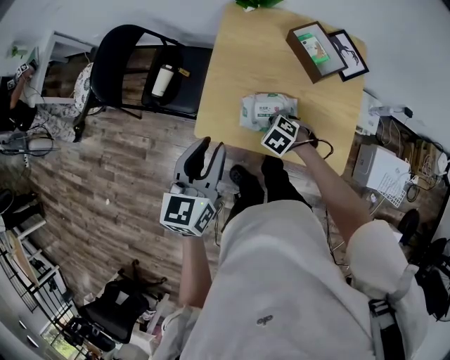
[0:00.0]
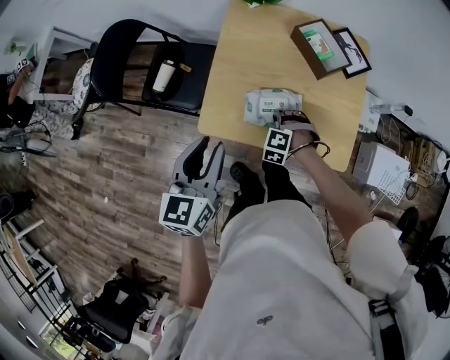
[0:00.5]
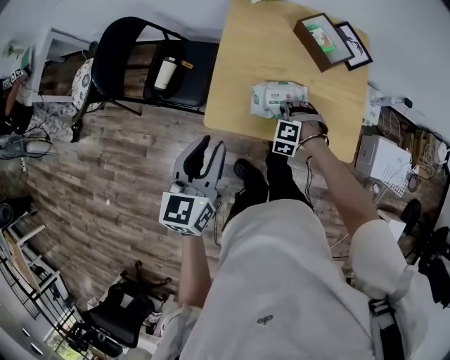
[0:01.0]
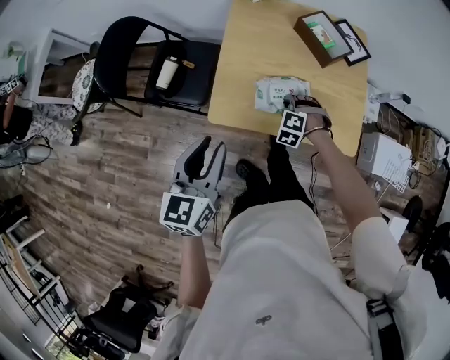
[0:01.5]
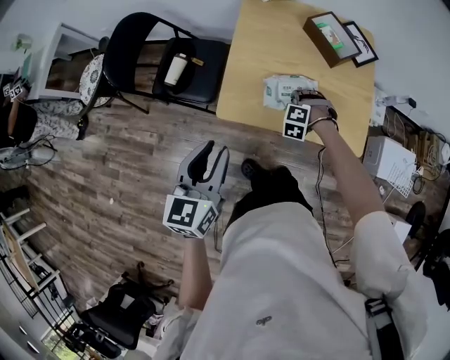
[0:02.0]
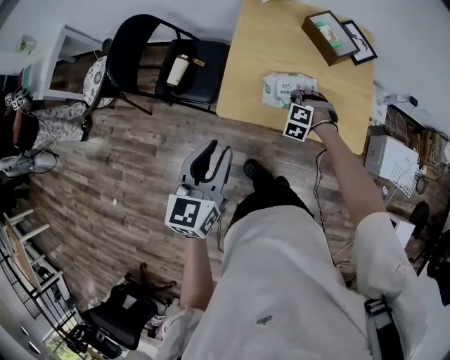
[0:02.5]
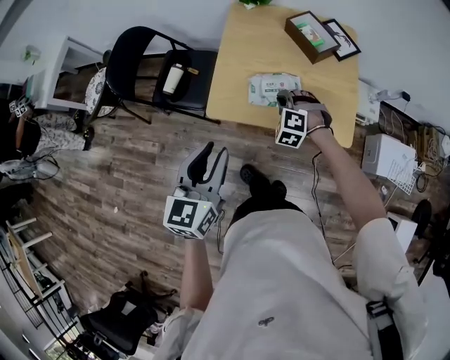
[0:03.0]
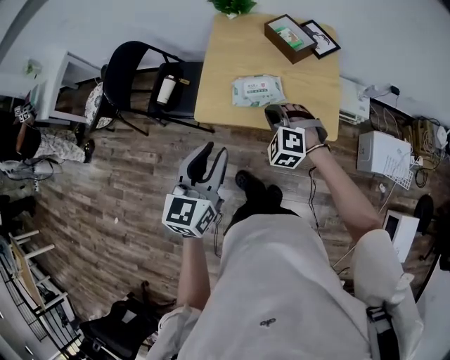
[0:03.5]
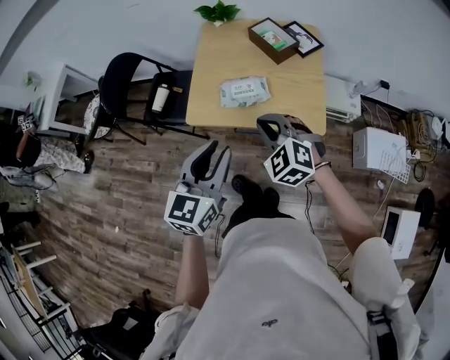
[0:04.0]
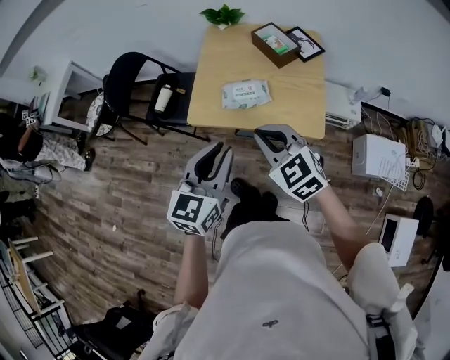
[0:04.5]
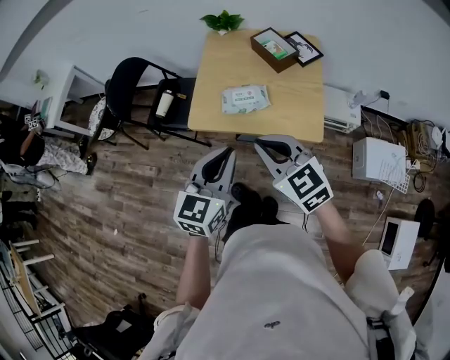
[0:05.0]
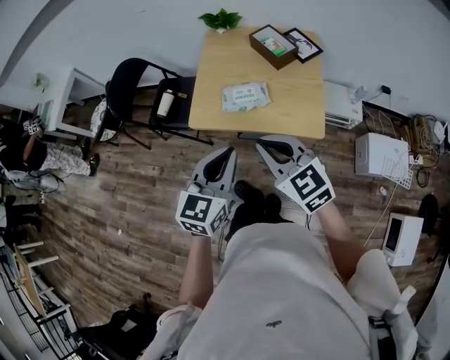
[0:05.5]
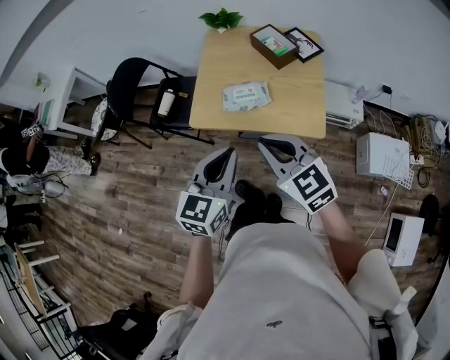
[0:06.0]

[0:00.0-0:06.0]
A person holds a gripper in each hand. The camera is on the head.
0:00.0 to 0:02.0: The right gripper turns by approximately 40 degrees. The left gripper shifts by approximately 15 cm.
0:02.0 to 0:04.0: The left gripper goes some 20 cm to the right, backward and upward; the right gripper travels upward and backward by approximately 30 cm, and tips its fingers upward by some 30 degrees.
0:04.0 to 0:06.0: The left gripper closes, while the right gripper moves upward and backward, approximately 10 cm, and rotates roughly 30 degrees.

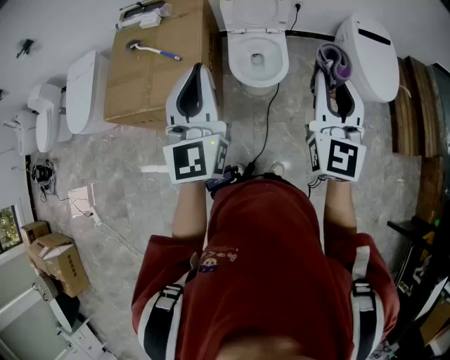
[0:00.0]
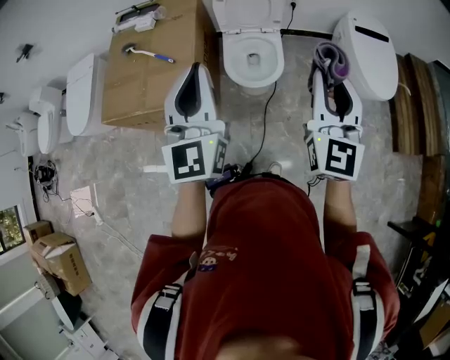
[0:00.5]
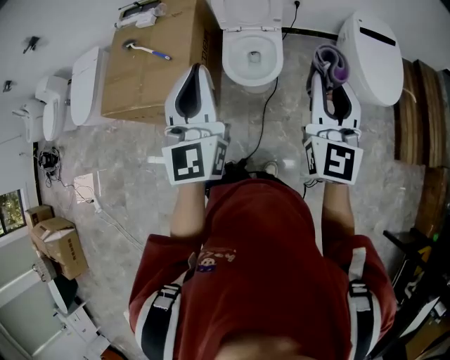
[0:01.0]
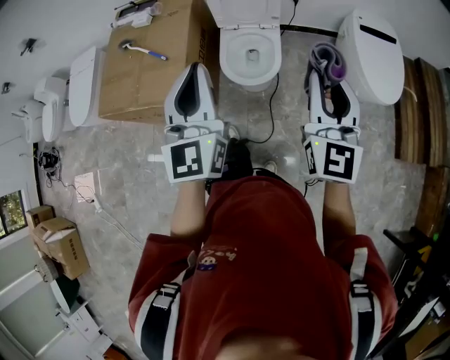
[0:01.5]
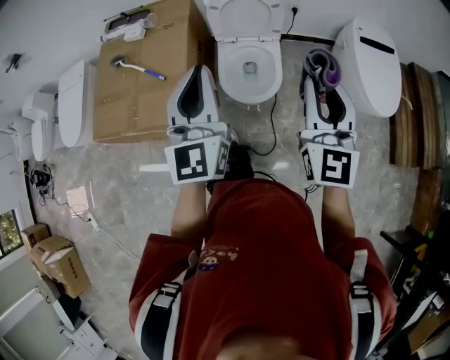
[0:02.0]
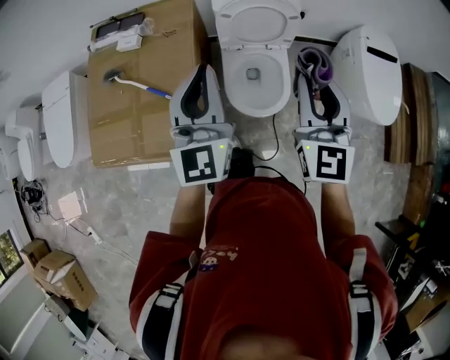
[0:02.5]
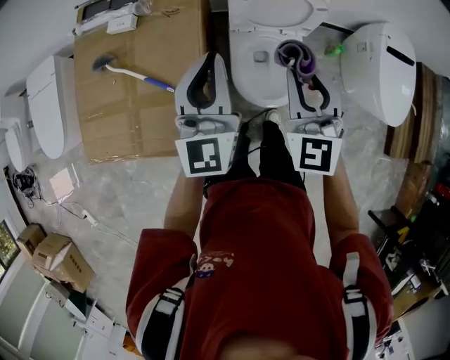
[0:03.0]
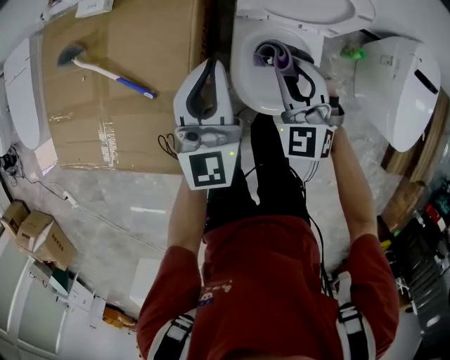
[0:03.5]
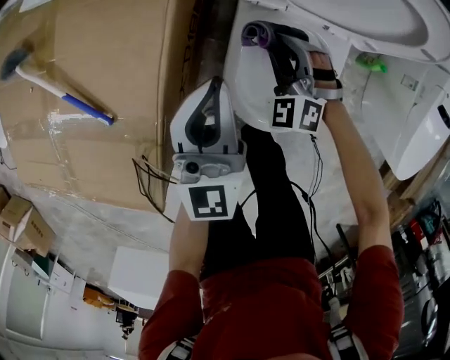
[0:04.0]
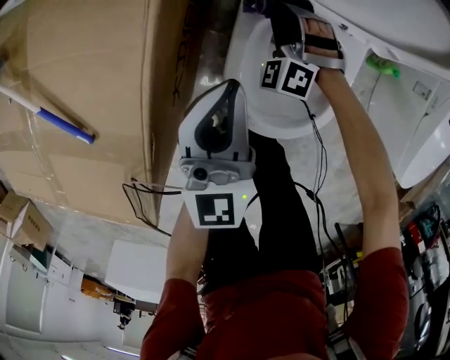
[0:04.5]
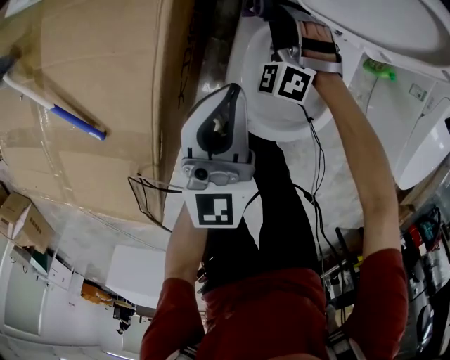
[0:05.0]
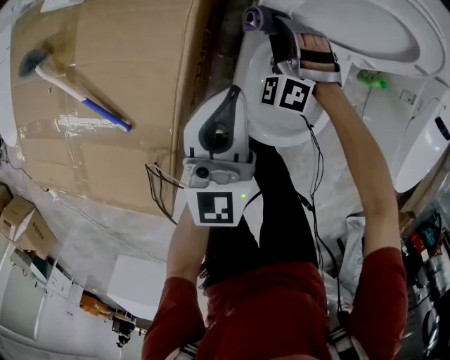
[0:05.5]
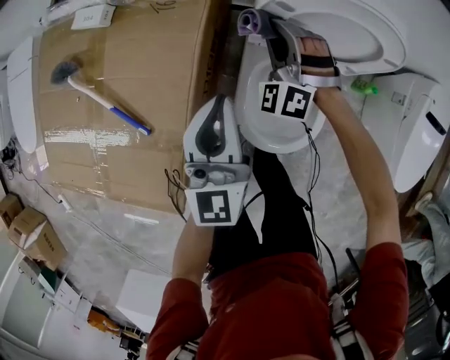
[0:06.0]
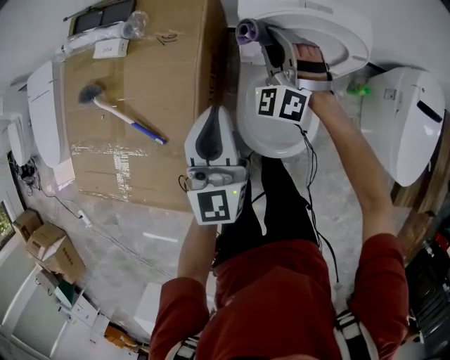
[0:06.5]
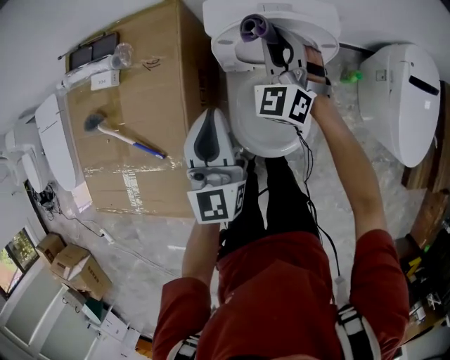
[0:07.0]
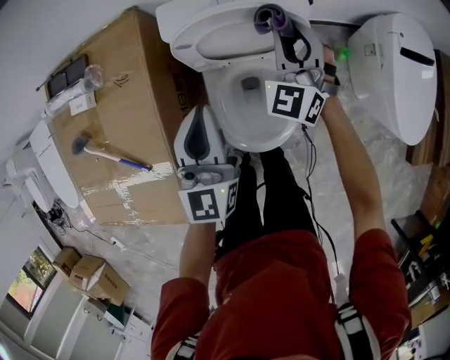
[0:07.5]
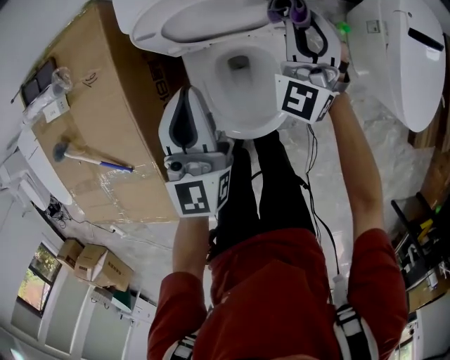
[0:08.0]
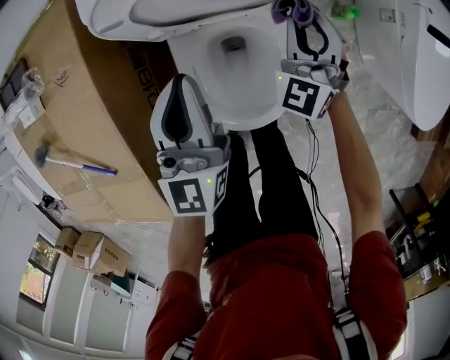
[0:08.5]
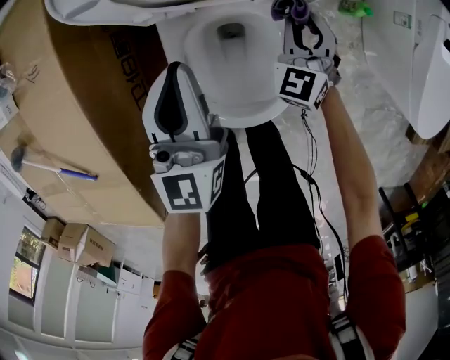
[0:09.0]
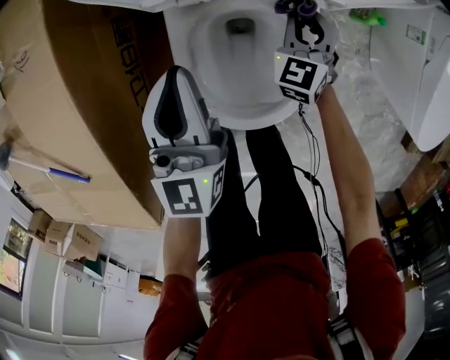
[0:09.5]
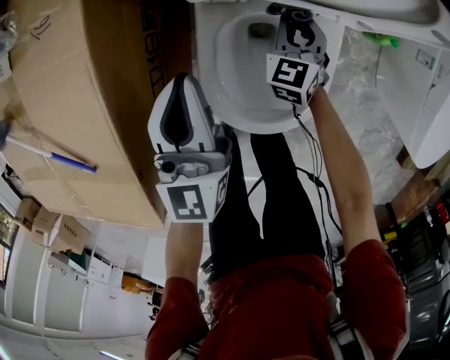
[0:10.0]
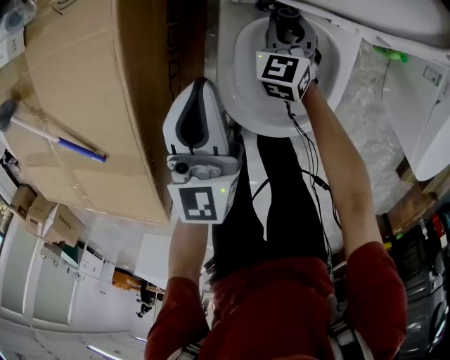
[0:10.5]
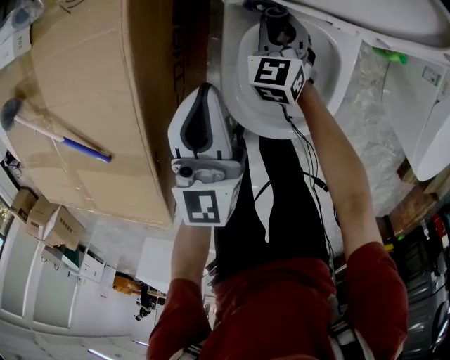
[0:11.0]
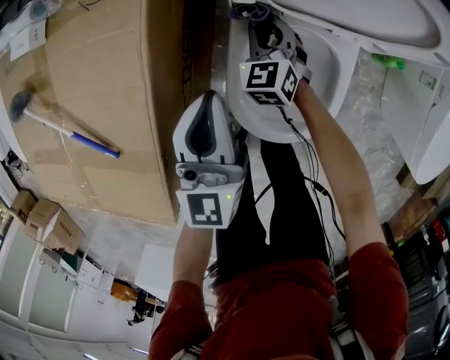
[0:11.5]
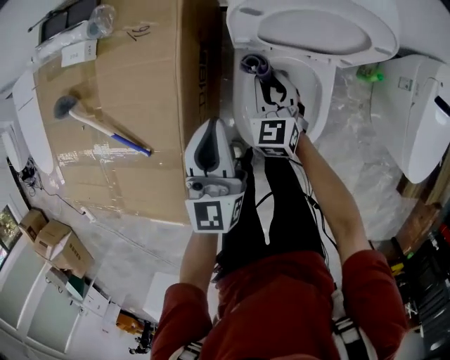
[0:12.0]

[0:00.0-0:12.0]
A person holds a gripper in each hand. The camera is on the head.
0:00.0 to 0:02.0: The right gripper travels forward by roughly 15 cm. Meanwhile the left gripper heads forward and to the right, covering some 15 cm.
0:02.0 to 0:04.0: The grippers both shift downward and forward by some 60 cm. The right gripper tips its fingers downward by some 40 degrees.
0:04.0 to 0:06.0: The right gripper moves upward and forward, about 15 cm, and changes its angle by some 20 degrees; the left gripper is displaced upward by some 10 cm.
0:06.0 to 0:08.0: The left gripper is displaced to the right and forward by roughly 20 cm. Meanwhile the right gripper is displaced to the right by approximately 30 cm, and turns by some 50 degrees.
0:08.0 to 0:10.0: The right gripper travels downward by approximately 30 cm, and swivels approximately 30 degrees. The left gripper heads downward and to the left, covering roughly 20 cm.
0:10.0 to 0:12.0: The right gripper moves upward and to the left, about 20 cm, while the left gripper goes about 10 cm upward.

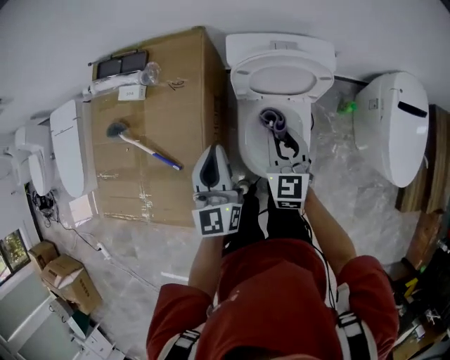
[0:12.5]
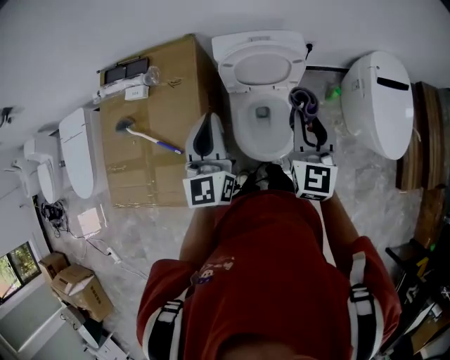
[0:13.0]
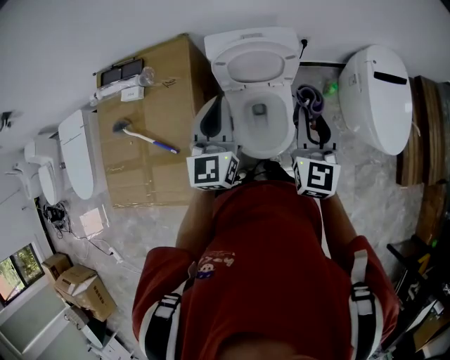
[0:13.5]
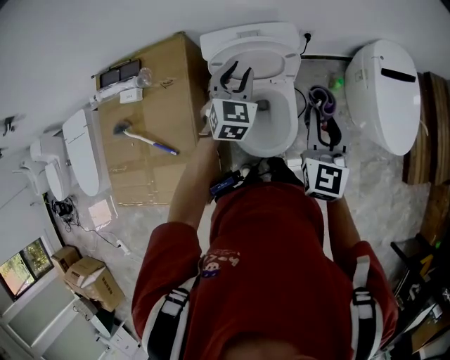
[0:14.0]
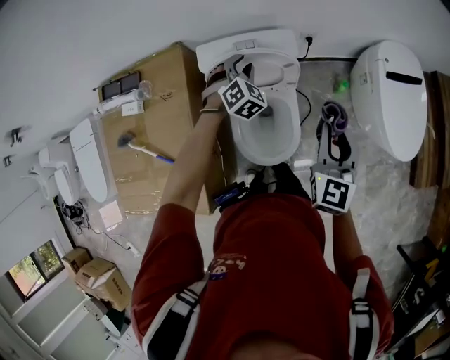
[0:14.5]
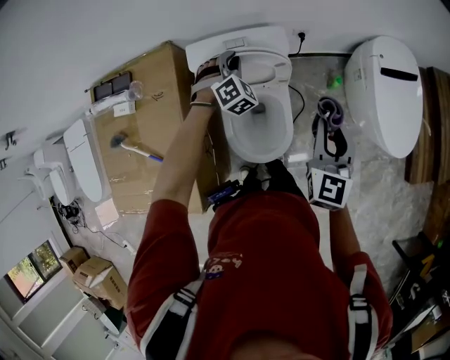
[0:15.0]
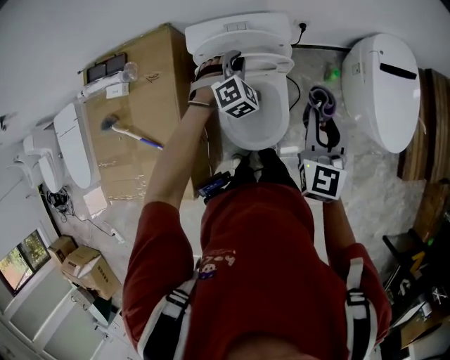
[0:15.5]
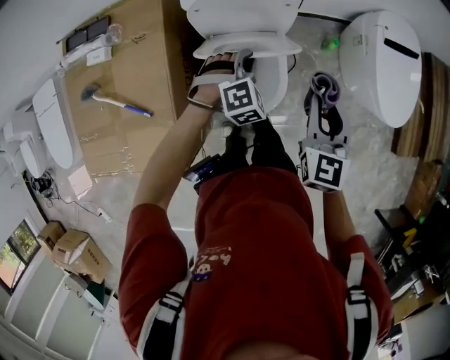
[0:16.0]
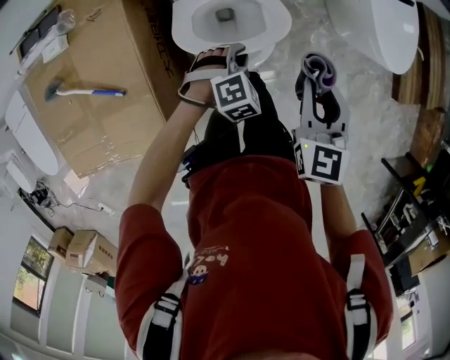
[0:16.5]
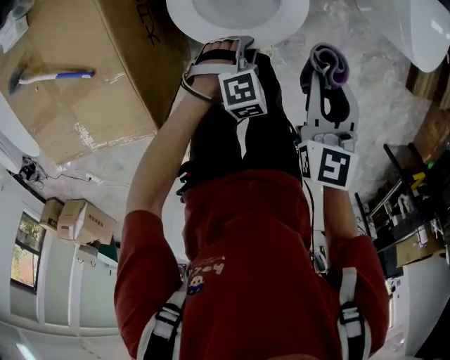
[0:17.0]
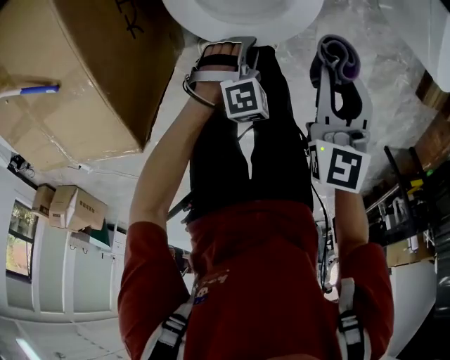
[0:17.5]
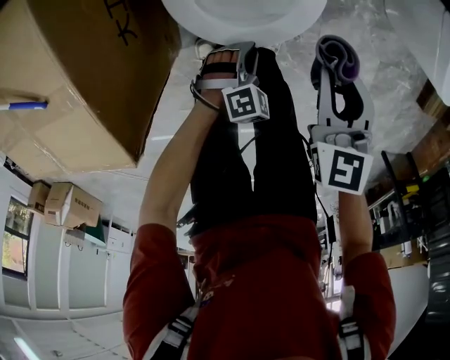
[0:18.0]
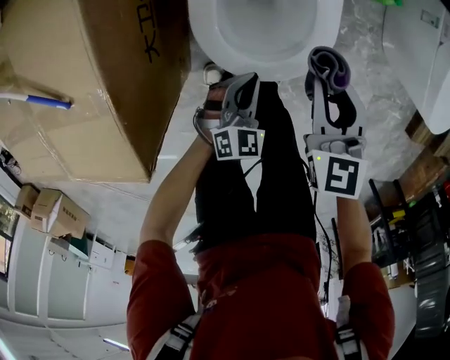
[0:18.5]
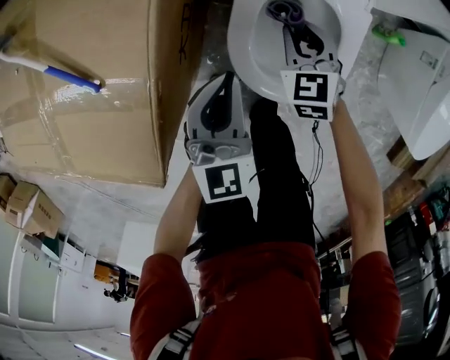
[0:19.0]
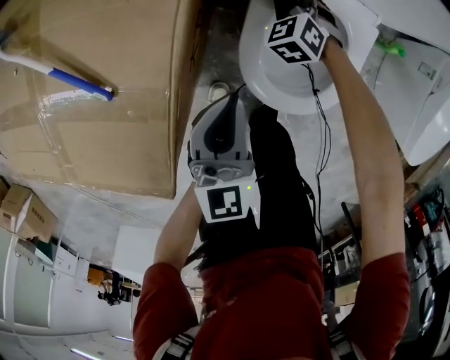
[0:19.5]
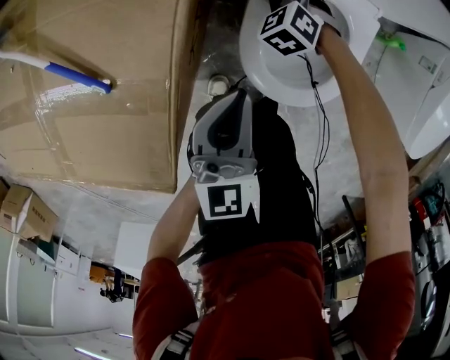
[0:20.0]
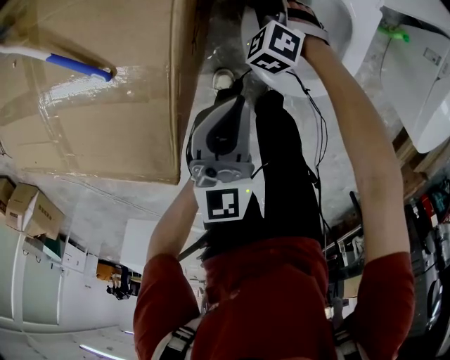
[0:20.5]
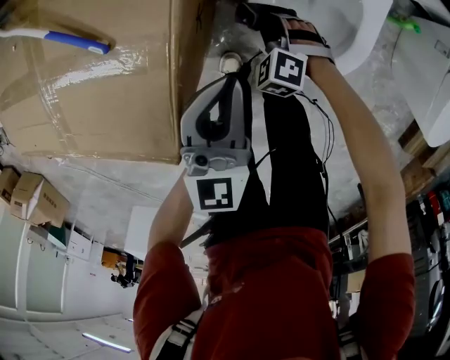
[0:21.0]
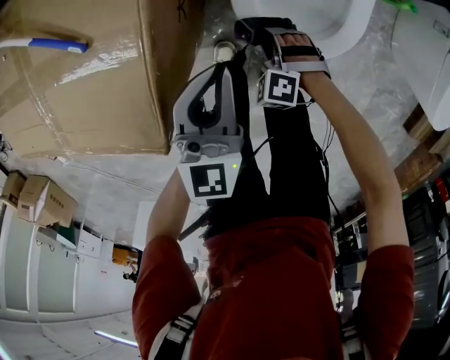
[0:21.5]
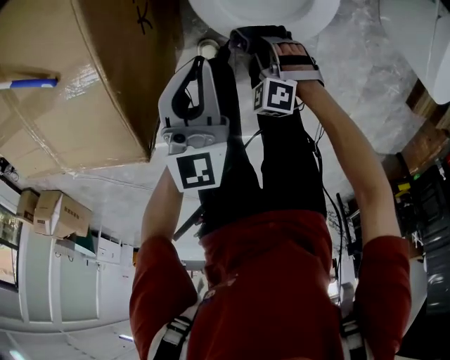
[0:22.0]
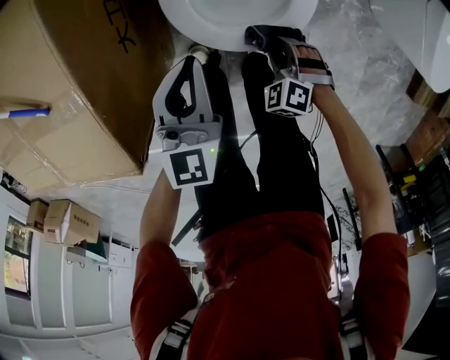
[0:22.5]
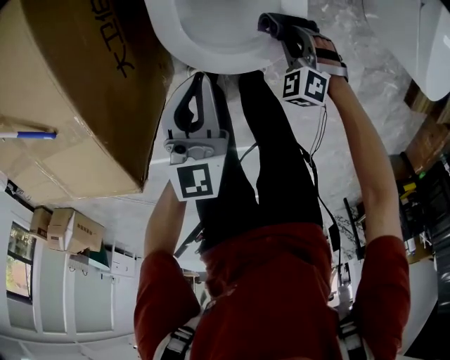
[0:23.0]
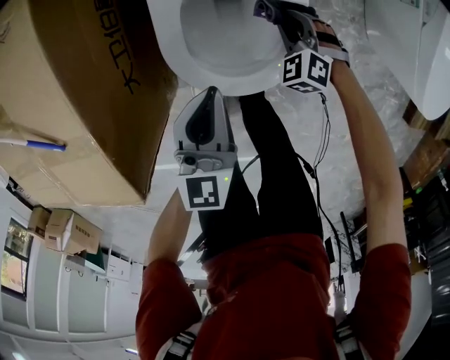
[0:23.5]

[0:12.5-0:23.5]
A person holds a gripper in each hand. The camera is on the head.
0:12.5 to 0:14.5: The right gripper travels to the right and upward by approximately 25 cm, and turns by some 20 degrees, while the left gripper is displaced forward and to the right by about 30 cm, rotates around the line of its fingers by approximately 60 degrees, clockwise from behind, and opens up.
0:14.5 to 0:16.0: The left gripper travels backward by roughly 20 cm; the right gripper travels backward by some 5 cm.
0:16.0 to 0:18.0: The right gripper is displaced downward by approximately 30 cm, and rotates roughly 20 degrees. The left gripper is displaced downward and backward by approximately 50 cm, and changes its angle by approximately 20 degrees.
0:18.0 to 0:20.0: The right gripper shifts by approximately 40 cm, and rolls counterclockwise, seen from behind, by roughly 60 degrees, while the left gripper is displaced upward by roughly 25 cm, and tips its fingers upward by some 40 degrees.
0:20.0 to 0:21.5: The left gripper travels backward by about 5 cm. The right gripper heads backward, covering some 25 cm, and turns by about 20 degrees.
0:21.5 to 0:23.5: The right gripper travels to the right and forward by approximately 30 cm, and swivels roughly 30 degrees; the left gripper heads to the right and forward, covering some 15 cm.
